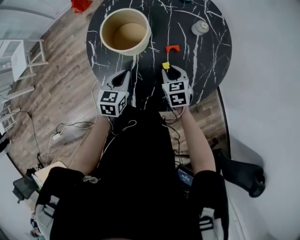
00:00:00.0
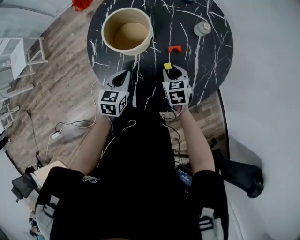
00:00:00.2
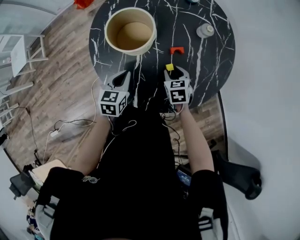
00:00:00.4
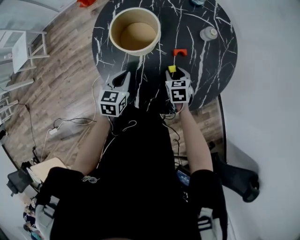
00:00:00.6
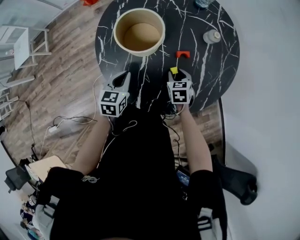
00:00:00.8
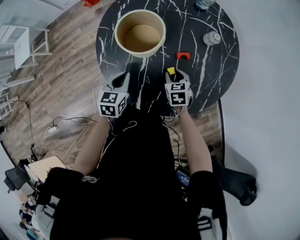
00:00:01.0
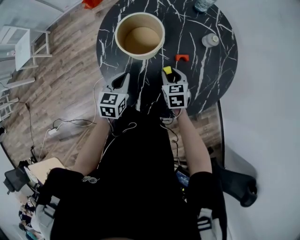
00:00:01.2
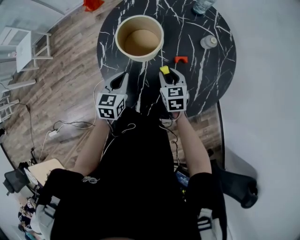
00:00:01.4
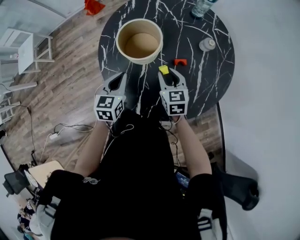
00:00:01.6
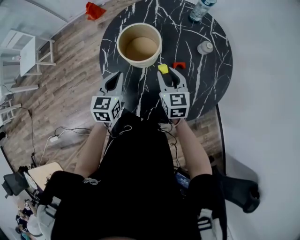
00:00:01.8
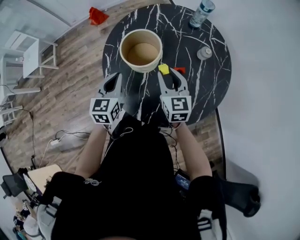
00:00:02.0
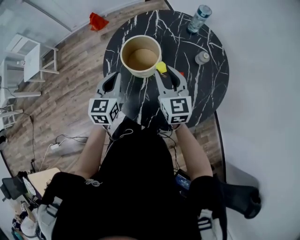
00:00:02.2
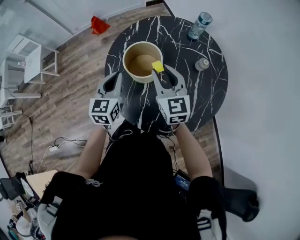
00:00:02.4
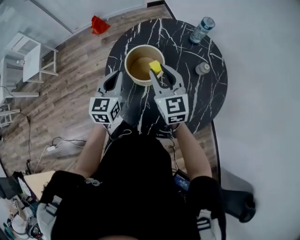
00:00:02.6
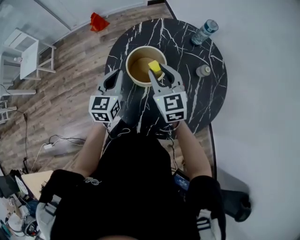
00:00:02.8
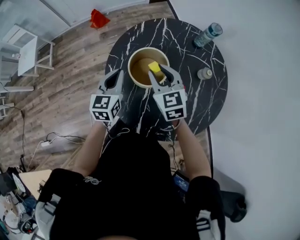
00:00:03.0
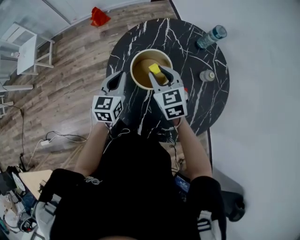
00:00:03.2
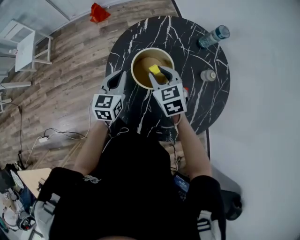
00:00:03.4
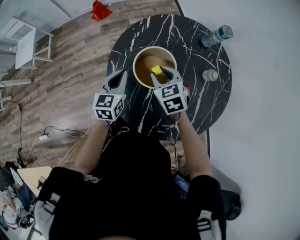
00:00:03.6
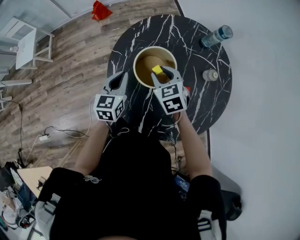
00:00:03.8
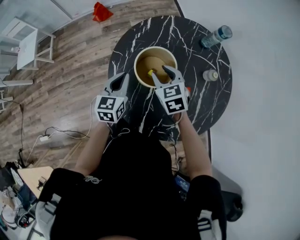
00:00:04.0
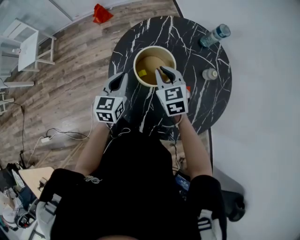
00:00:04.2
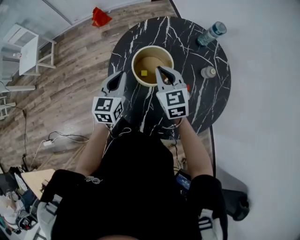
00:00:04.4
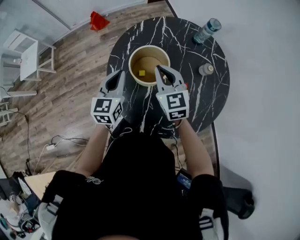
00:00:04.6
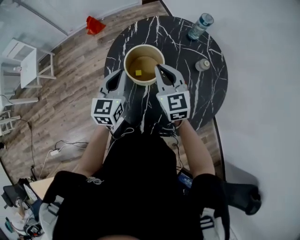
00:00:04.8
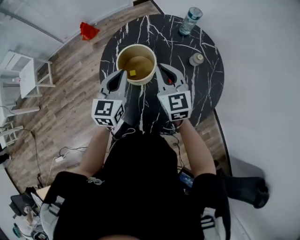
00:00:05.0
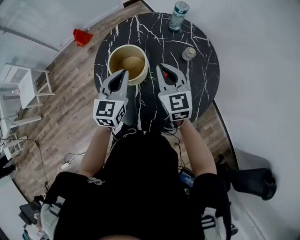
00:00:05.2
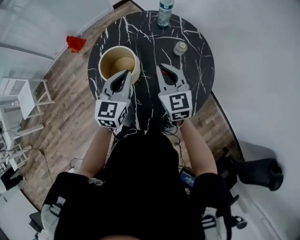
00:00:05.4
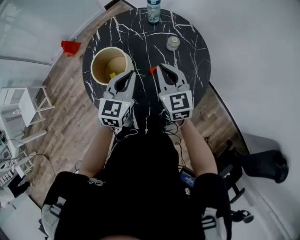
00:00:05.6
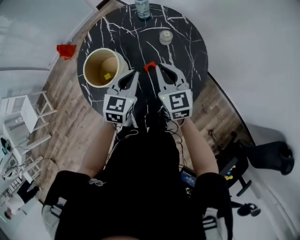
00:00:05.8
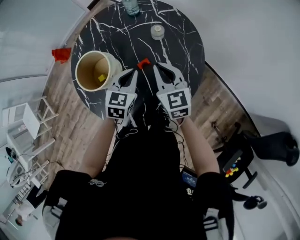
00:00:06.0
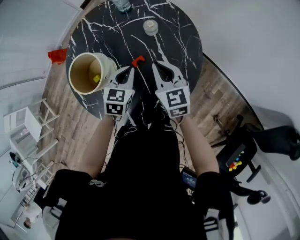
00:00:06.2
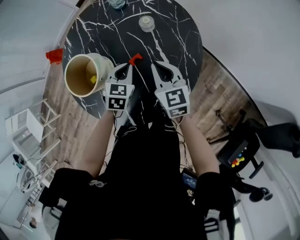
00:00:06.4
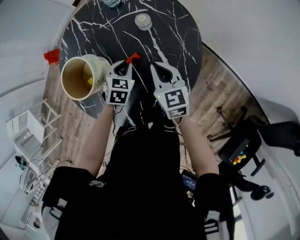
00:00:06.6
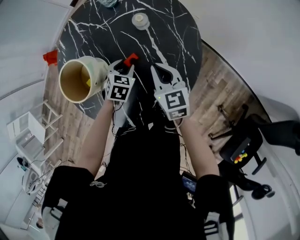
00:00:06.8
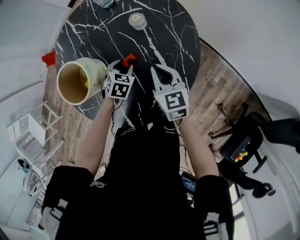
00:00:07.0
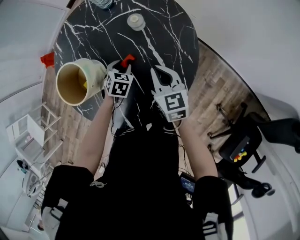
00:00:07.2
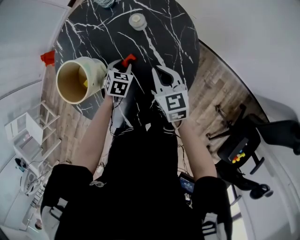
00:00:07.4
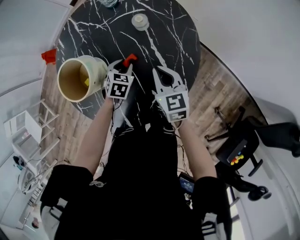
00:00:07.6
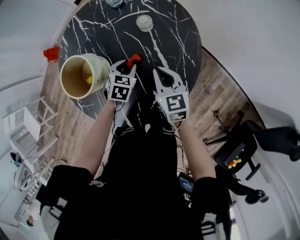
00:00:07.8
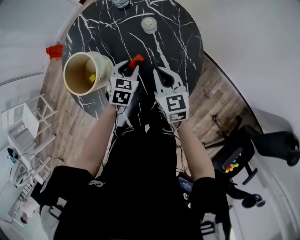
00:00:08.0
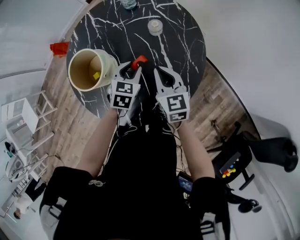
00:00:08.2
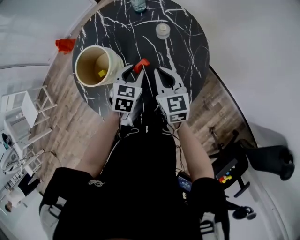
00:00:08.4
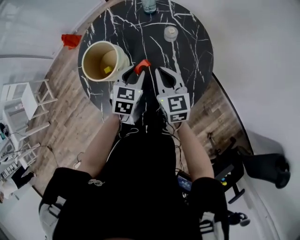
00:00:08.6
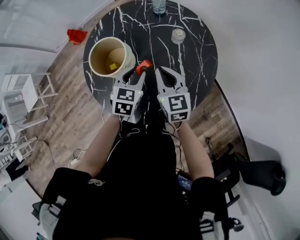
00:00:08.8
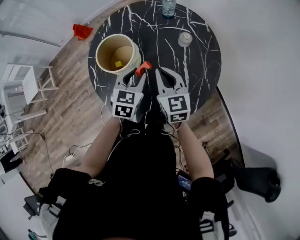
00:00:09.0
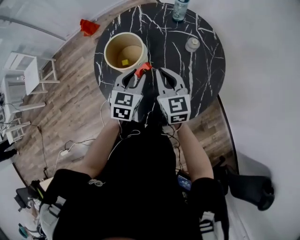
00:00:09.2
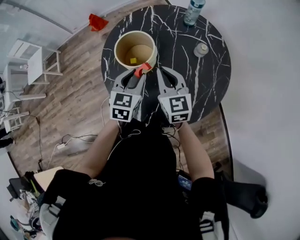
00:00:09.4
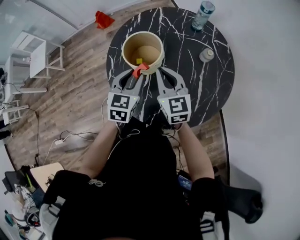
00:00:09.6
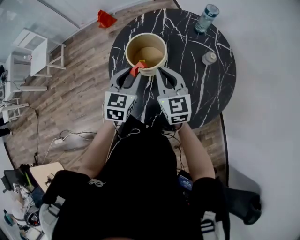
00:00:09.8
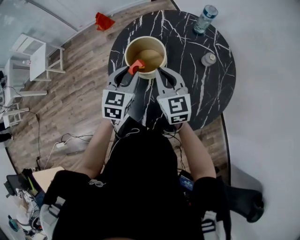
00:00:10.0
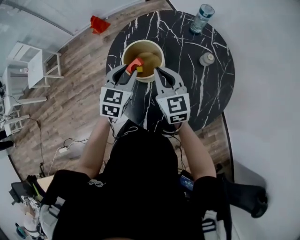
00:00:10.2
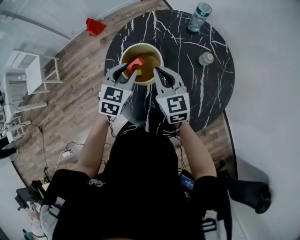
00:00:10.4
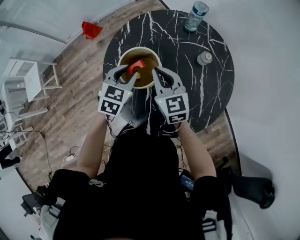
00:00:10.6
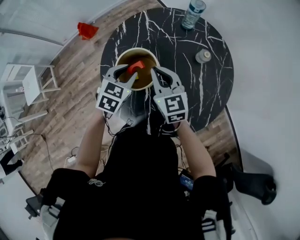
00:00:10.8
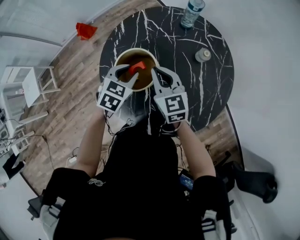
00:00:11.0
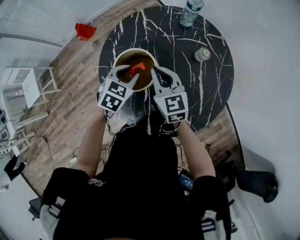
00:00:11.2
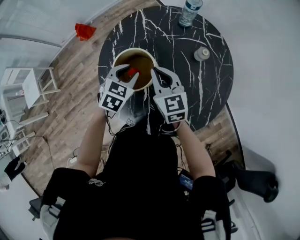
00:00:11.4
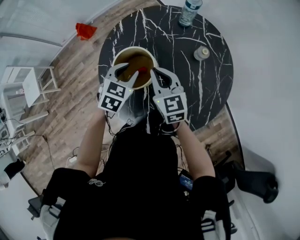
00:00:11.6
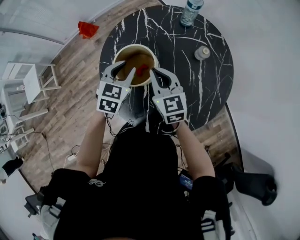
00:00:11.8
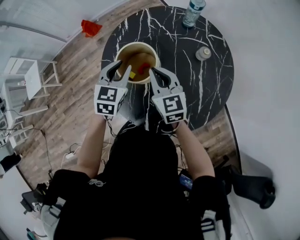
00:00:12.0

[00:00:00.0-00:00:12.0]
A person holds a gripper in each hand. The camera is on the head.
00:00:00.0 to 00:00:01.6: The right gripper is displaced to the left and upward by approximately 10 cm, while the left gripper is displaced to the left by some 5 cm.
00:00:01.6 to 00:00:03.0: The left gripper shifts about 15 cm forward and upward, while the right gripper moves upward, forward and to the left, some 20 cm.
00:00:03.0 to 00:00:04.4: The right gripper reaches approximately 10 cm downward, then returns, and closes.
00:00:04.4 to 00:00:06.0: The left gripper shifts by approximately 30 cm, and turns by about 40 degrees, while the right gripper changes place by roughly 25 cm, and swivels approximately 30 degrees.
00:00:06.0 to 00:00:07.6: The right gripper moves downward and to the right, roughly 10 cm, while the left gripper heads downward, covering roughly 15 cm, turns by roughly 30 degrees, and opens its fingers.
00:00:07.6 to 00:00:09.0: The right gripper goes roughly 15 cm to the left and upward, and turns by roughly 20 degrees; the left gripper heads upward, to the left and backward, covering some 20 cm, and turns by approximately 30 degrees.
00:00:09.0 to 00:00:10.4: Both grippers move to the left and forward, some 15 cm.

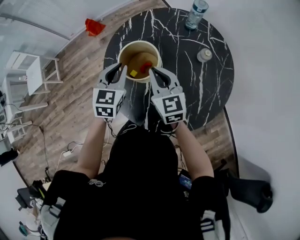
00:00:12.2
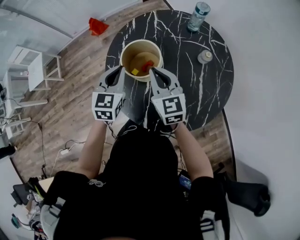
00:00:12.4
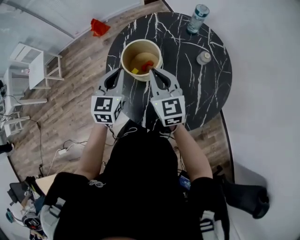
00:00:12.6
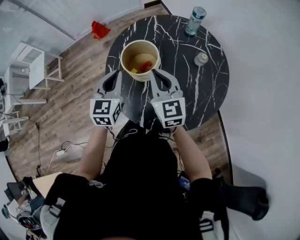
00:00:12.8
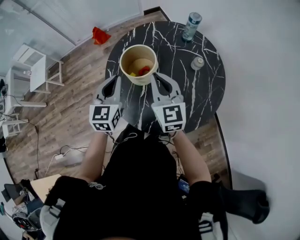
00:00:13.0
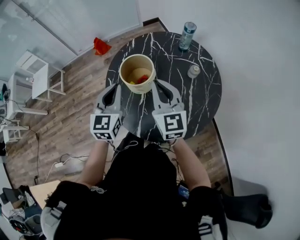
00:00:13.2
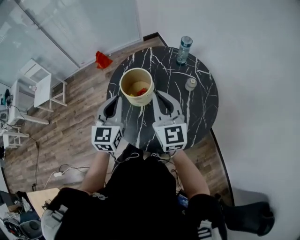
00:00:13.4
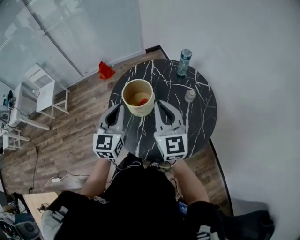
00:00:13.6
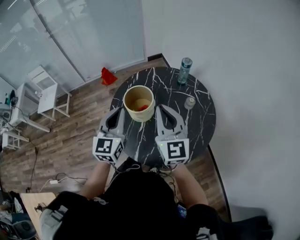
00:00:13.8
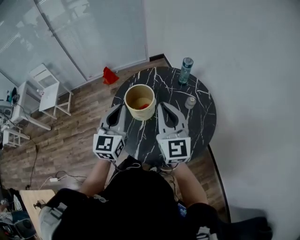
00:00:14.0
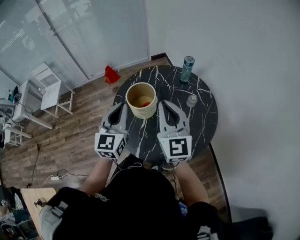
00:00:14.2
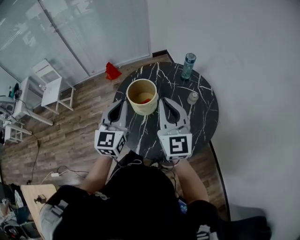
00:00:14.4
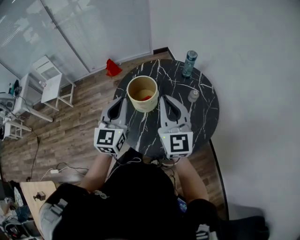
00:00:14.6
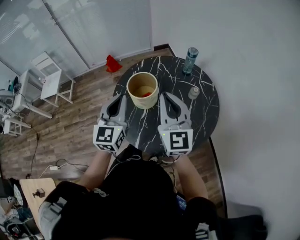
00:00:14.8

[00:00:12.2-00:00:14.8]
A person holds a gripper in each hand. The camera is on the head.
00:00:12.2 to 00:00:13.4: The right gripper moves upward and backward, some 15 cm. Meanwhile the left gripper goes some 15 cm backward and upward, and swivels about 20 degrees.
00:00:13.4 to 00:00:14.8: The grippers both shift upward by about 5 cm.

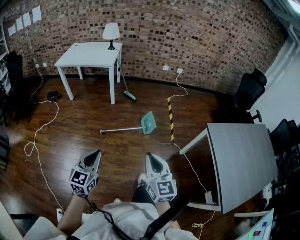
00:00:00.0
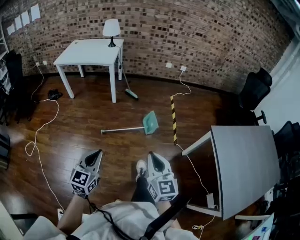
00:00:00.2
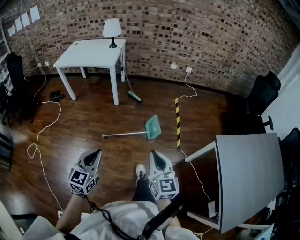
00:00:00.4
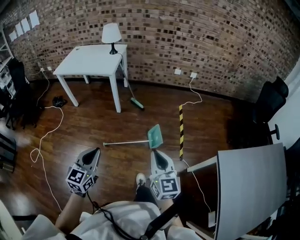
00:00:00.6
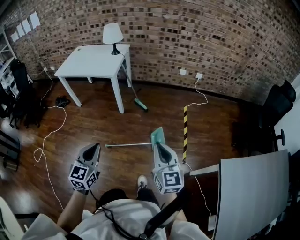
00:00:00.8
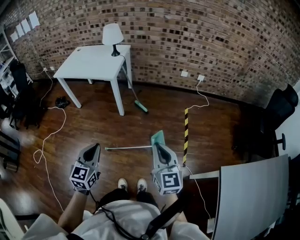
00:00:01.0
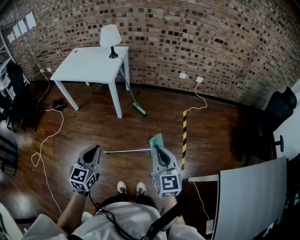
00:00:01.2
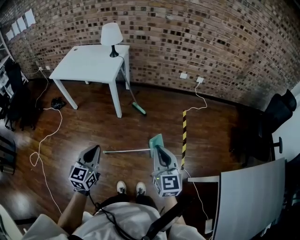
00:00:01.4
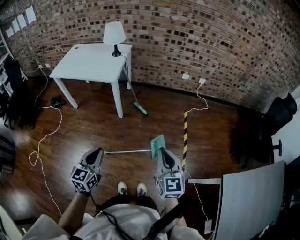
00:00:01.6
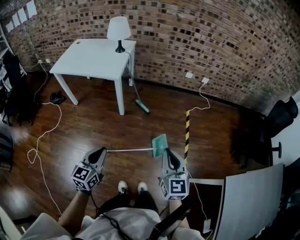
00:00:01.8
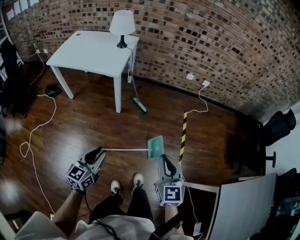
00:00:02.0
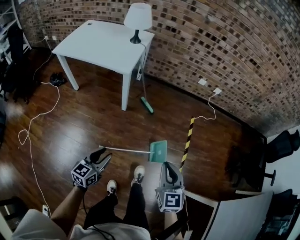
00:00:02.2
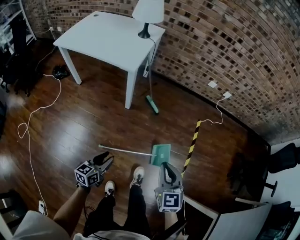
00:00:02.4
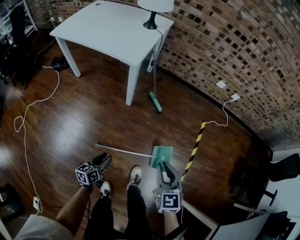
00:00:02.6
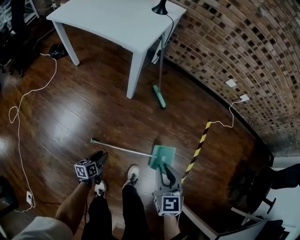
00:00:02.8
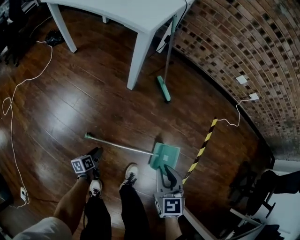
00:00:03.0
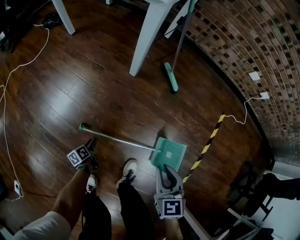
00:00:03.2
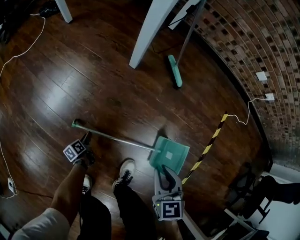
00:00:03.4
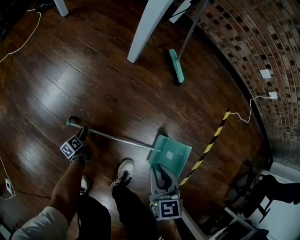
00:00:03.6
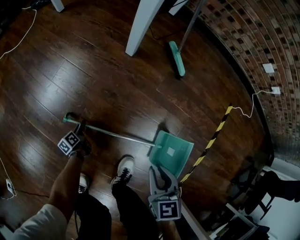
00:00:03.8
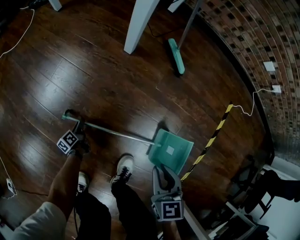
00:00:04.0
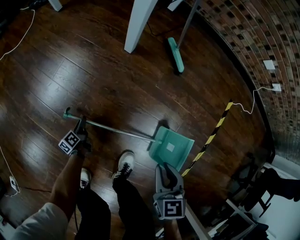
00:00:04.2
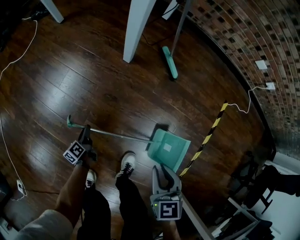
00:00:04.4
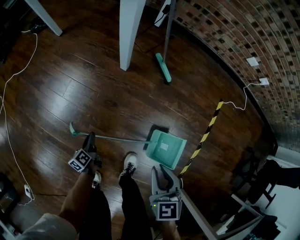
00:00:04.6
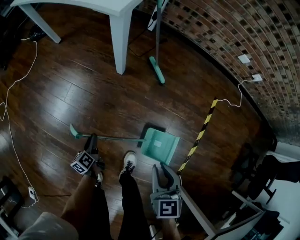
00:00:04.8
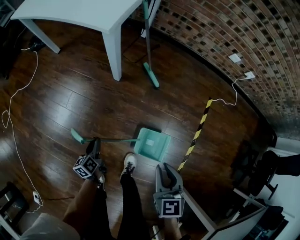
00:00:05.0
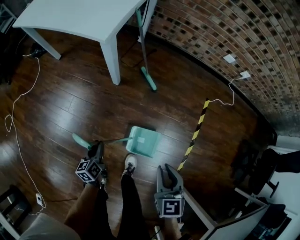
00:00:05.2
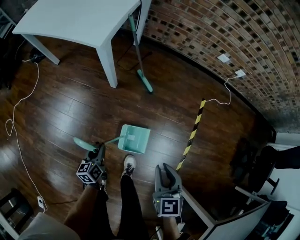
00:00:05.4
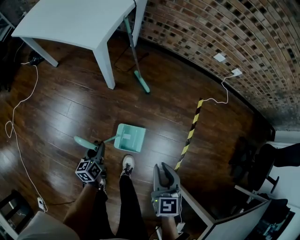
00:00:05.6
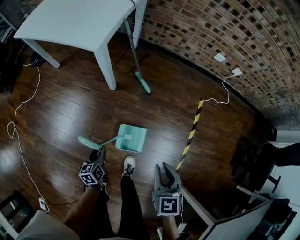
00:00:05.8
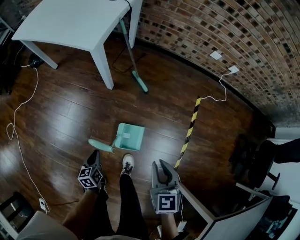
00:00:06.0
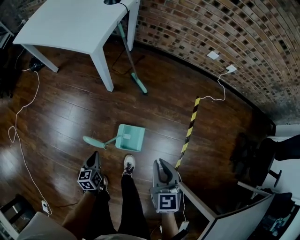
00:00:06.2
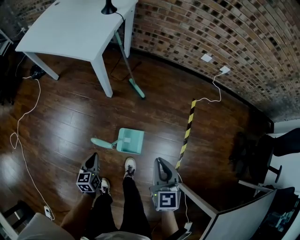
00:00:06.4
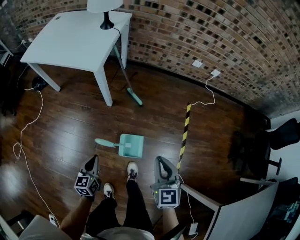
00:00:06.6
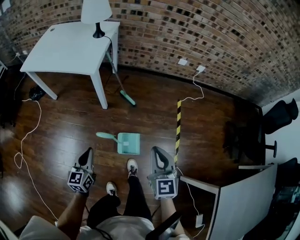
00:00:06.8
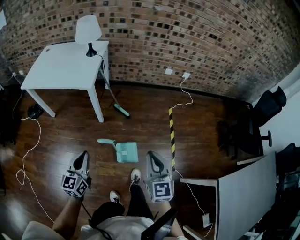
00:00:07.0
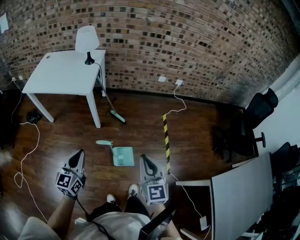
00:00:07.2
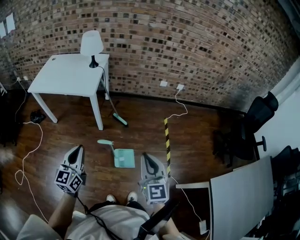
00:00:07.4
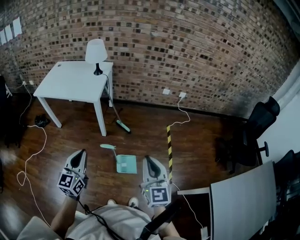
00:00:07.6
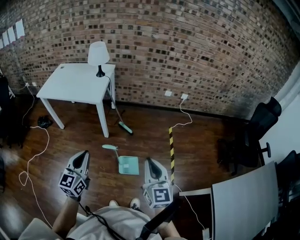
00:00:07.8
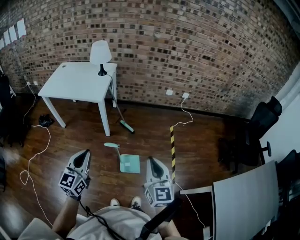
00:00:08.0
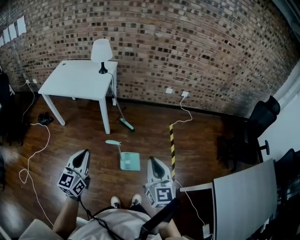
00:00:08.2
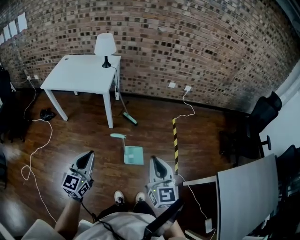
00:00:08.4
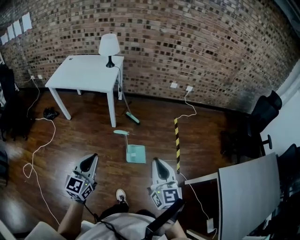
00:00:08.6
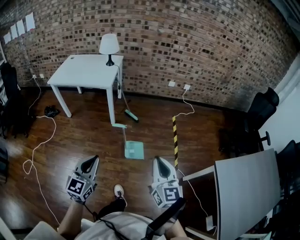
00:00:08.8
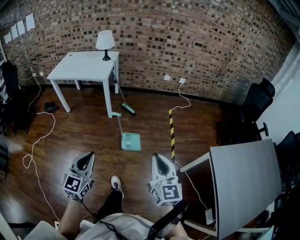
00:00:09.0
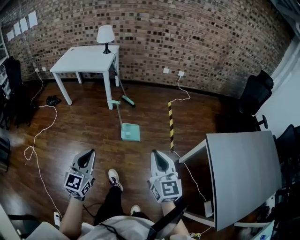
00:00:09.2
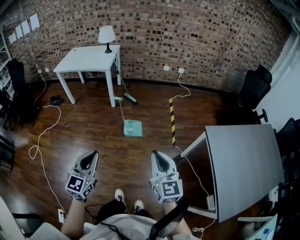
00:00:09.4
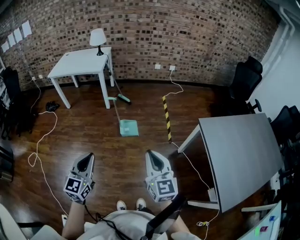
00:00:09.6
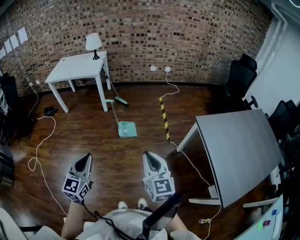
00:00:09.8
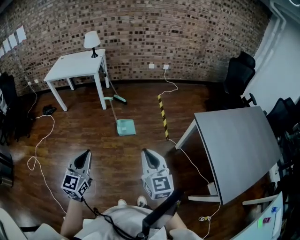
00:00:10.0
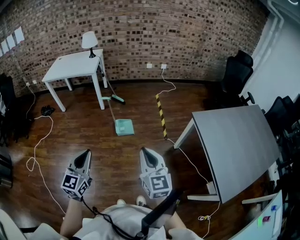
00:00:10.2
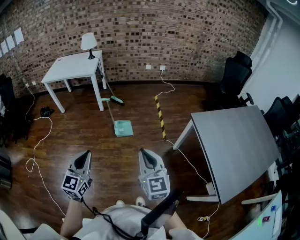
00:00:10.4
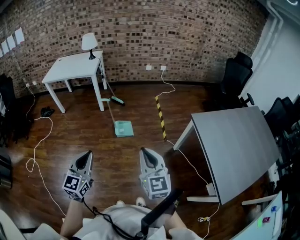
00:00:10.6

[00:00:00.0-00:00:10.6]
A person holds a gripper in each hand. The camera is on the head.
00:00:00.0 to 00:00:01.6: The pair of grippers is taken forward, some 40 cm.
00:00:01.6 to 00:00:03.0: The right gripper shifts some 50 cm downward and forward, and swivels about 30 degrees, while the left gripper travels downward by about 60 cm, rolls counterclockwise, seen from behind, by approximately 60 degrees, and opens up.
00:00:03.0 to 00:00:04.6: The right gripper moves about 20 cm downward and comes back, while the left gripper goes roughly 5 cm forward, reaches some 25 cm downward, then returns, and changes its angle by some 20 degrees.
00:00:04.6 to 00:00:06.0: The two grippers go approximately 25 cm upward and to the right. The left gripper swivels approximately 40 degrees.
00:00:06.0 to 00:00:07.6: The left gripper shifts roughly 50 cm upward, and points its fingers about 40 degrees further upward. Meanwhile the right gripper goes approximately 40 cm upward and backward, and tilts its fingers roughly 30 degrees upward.
00:00:07.6 to 00:00:09.0: The two grippers go approximately 30 cm backward.
00:00:09.0 to 00:00:10.6: The two grippers go about 20 cm backward.
